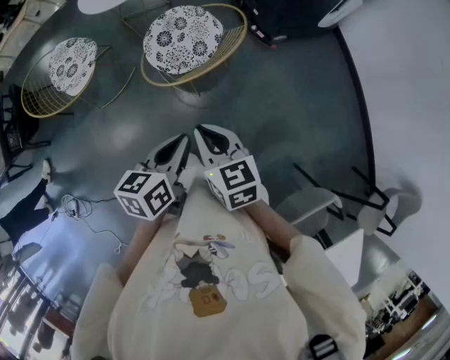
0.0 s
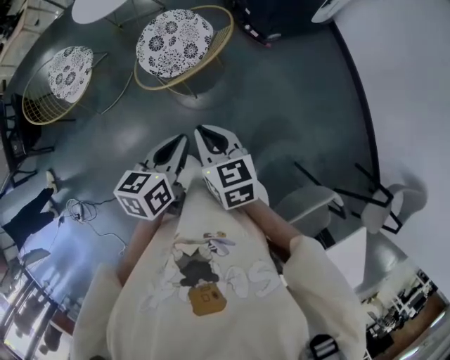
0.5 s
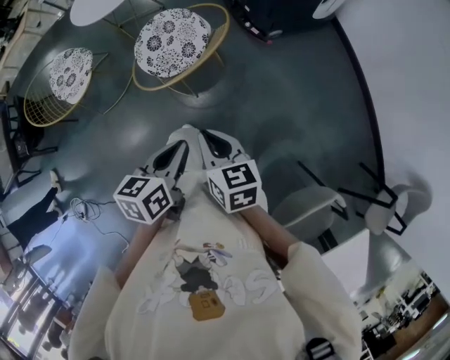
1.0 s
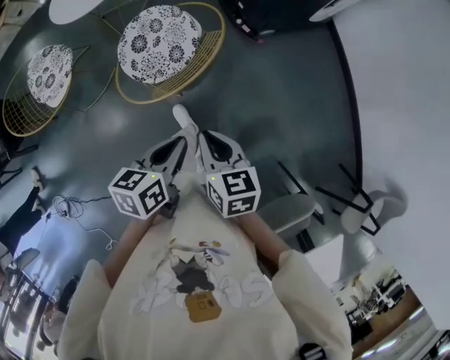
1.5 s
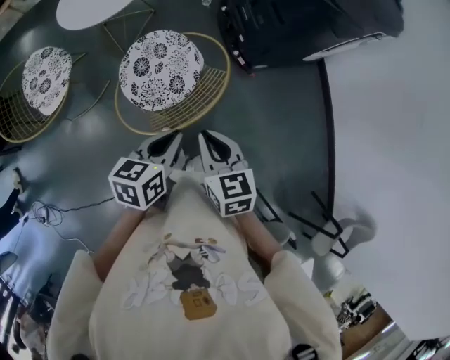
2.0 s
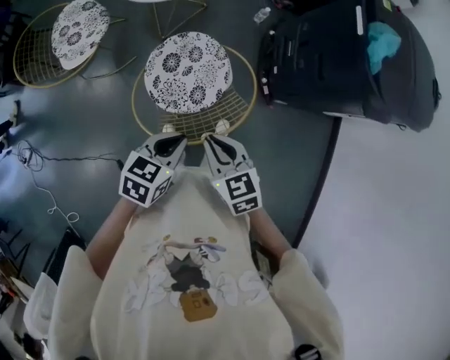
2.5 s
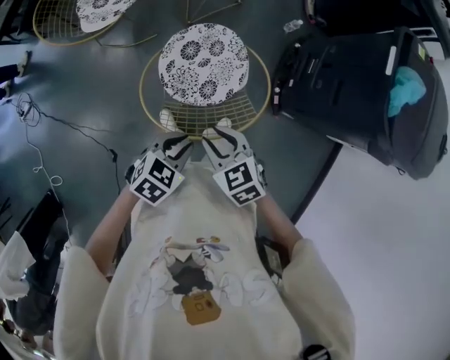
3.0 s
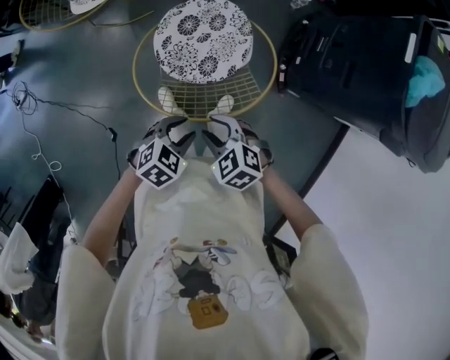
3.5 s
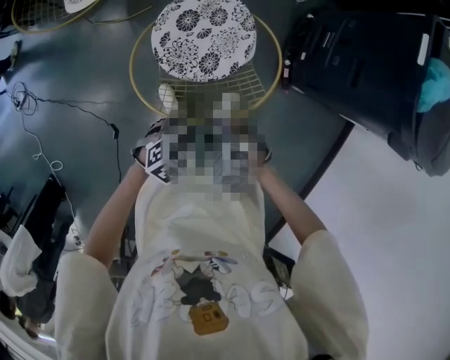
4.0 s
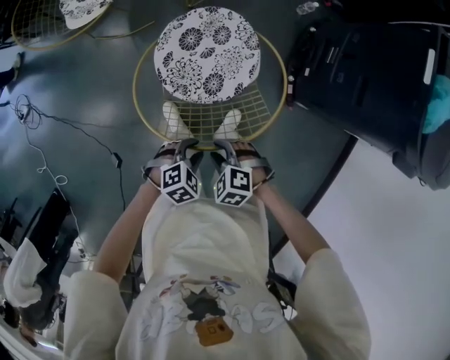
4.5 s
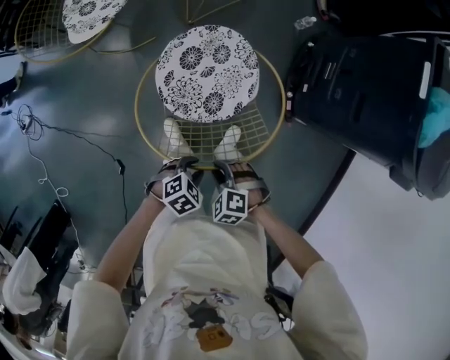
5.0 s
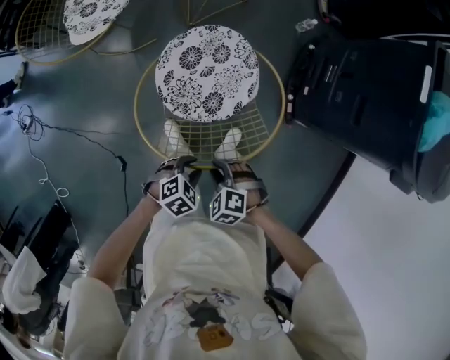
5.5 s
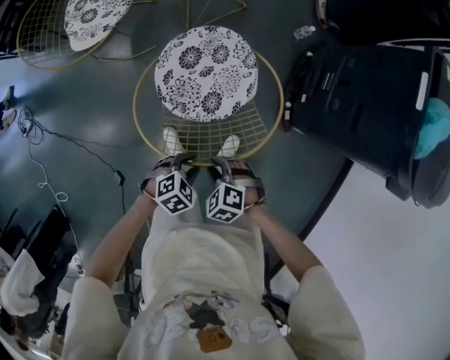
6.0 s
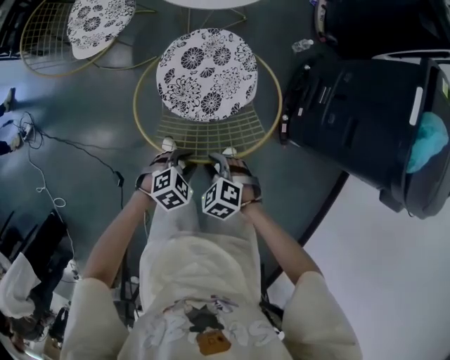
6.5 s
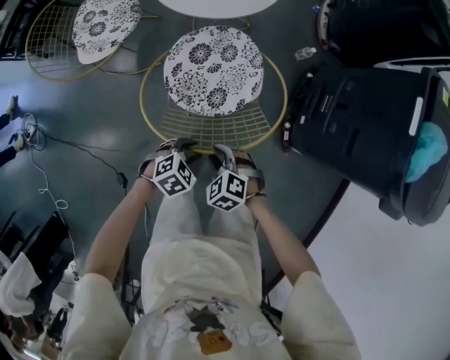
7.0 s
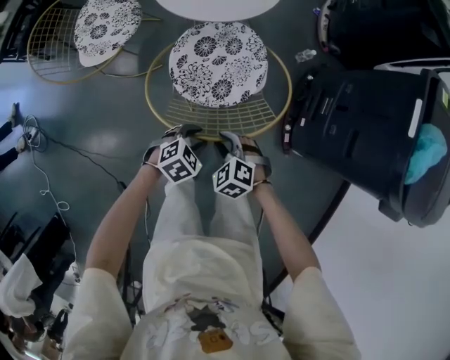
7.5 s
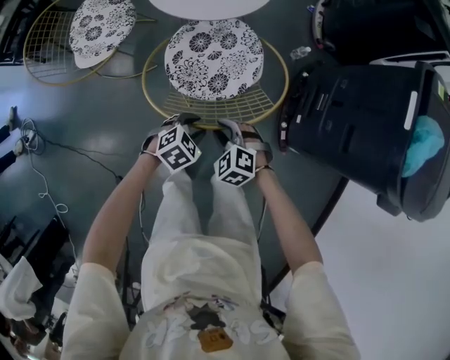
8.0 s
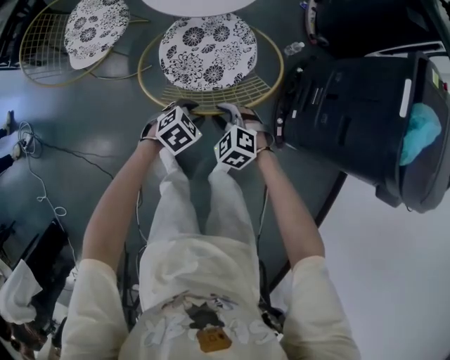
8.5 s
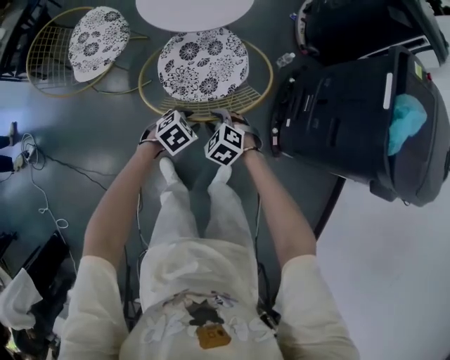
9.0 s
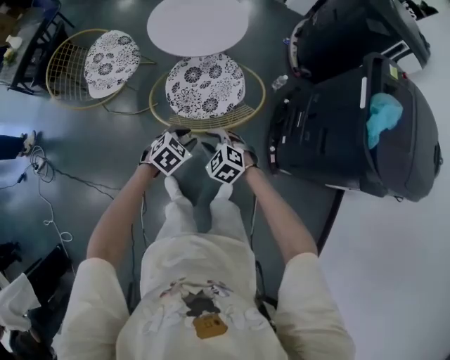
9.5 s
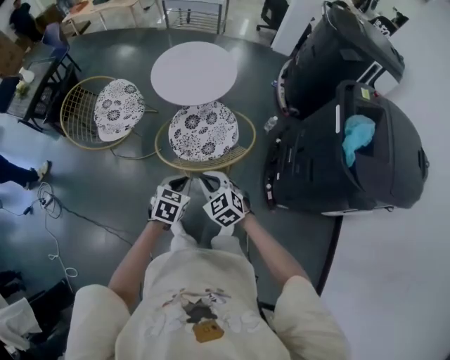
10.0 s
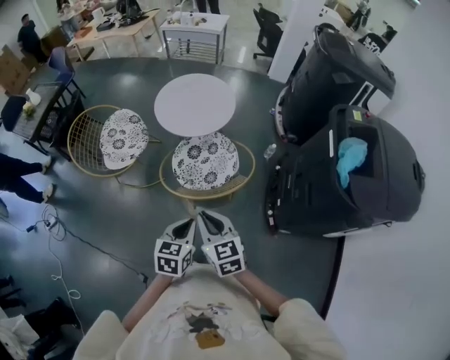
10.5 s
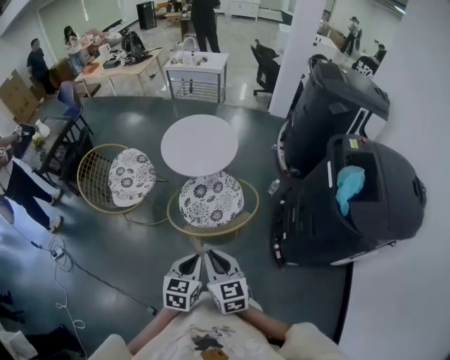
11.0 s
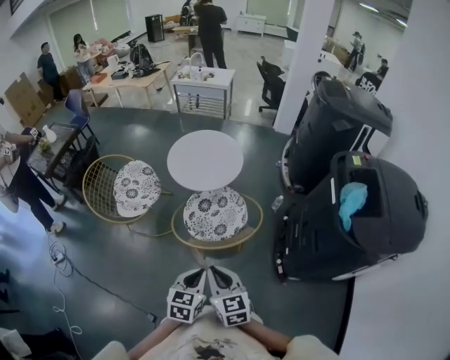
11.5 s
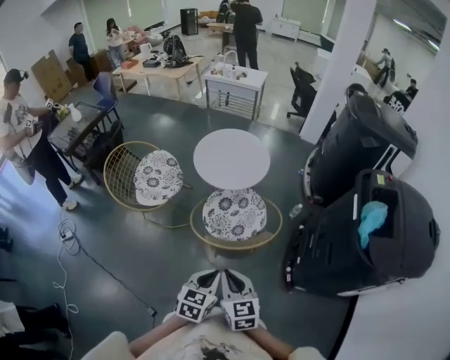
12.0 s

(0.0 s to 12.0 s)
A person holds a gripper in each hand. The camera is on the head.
0.0 s - 2.0 s: Both grippers travel together forward, some 25 cm.
2.0 s - 4.0 s: Both grippers travel together downward, approximately 20 cm. The right gripper swivels approximately 90 degrees, and opens up. The left gripper rotates approximately 40 degrees, and opens its fingers.
4.0 s - 6.0 s: The left gripper heads downward, covering about 5 cm.
6.0 s - 8.0 s: The right gripper moves approximately 20 cm. Meanwhile the left gripper changes place by approximately 20 cm.
8.0 s - 10.0 s: The two grippers go some 20 cm upward. The right gripper rotates roughly 30 degrees; the left gripper changes its angle by some 30 degrees, and closes up.
10.0 s - 12.0 s: Both grippers move upward and backward, about 15 cm. The right gripper turns by roughly 30 degrees.

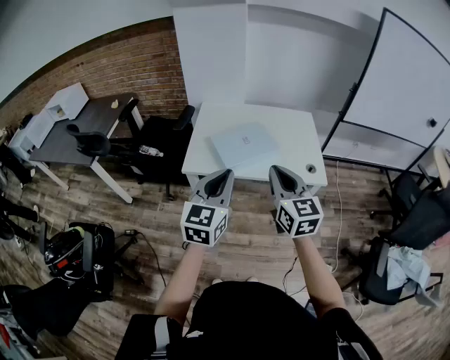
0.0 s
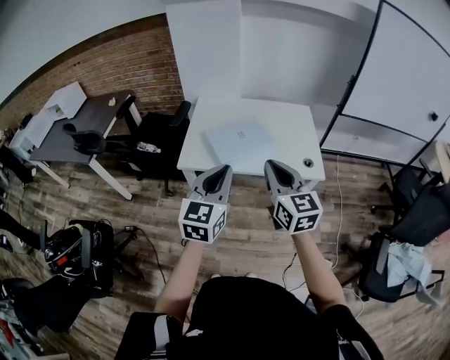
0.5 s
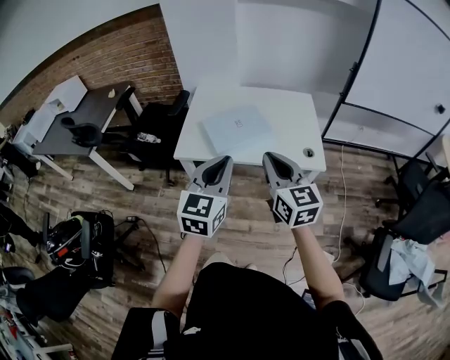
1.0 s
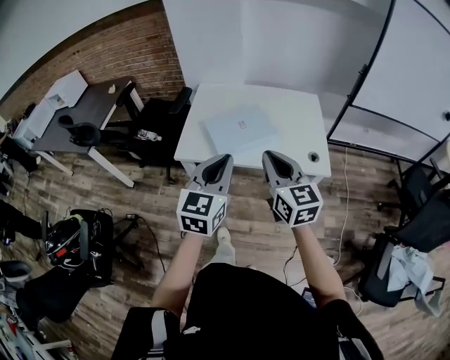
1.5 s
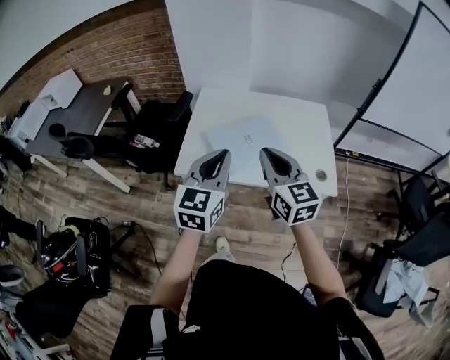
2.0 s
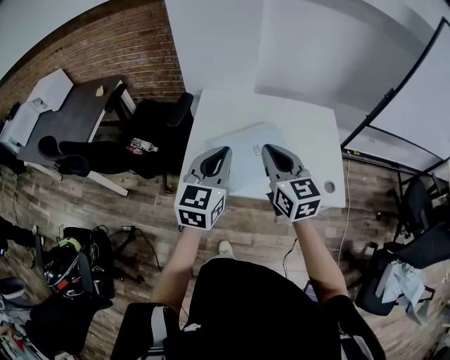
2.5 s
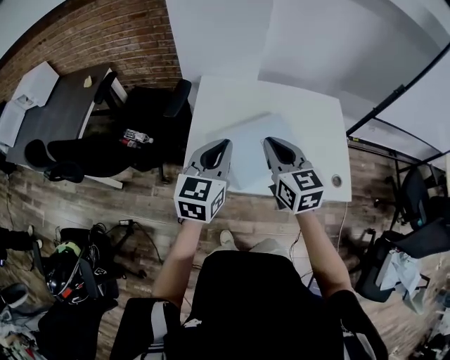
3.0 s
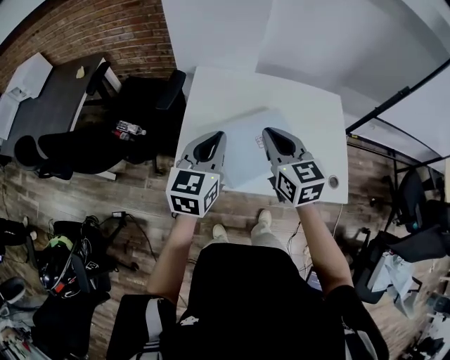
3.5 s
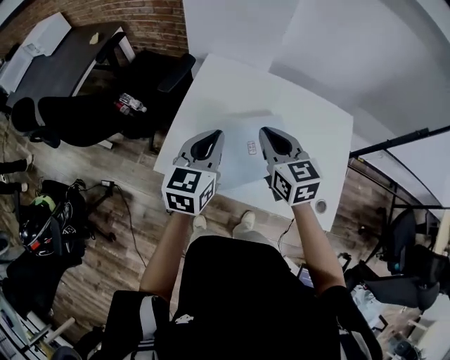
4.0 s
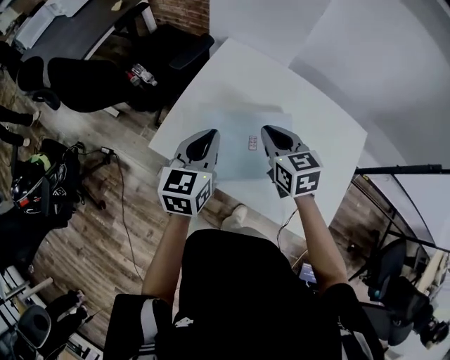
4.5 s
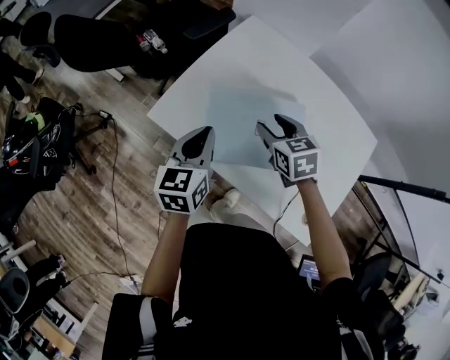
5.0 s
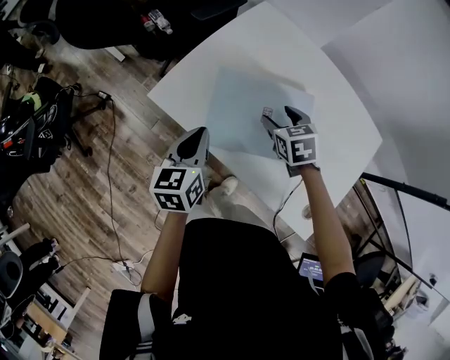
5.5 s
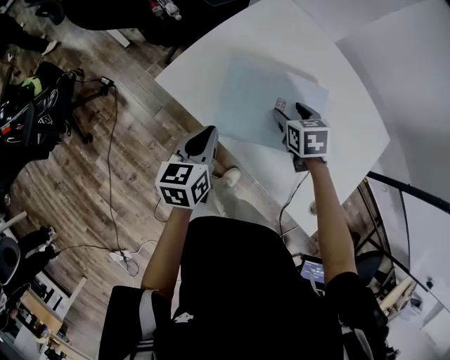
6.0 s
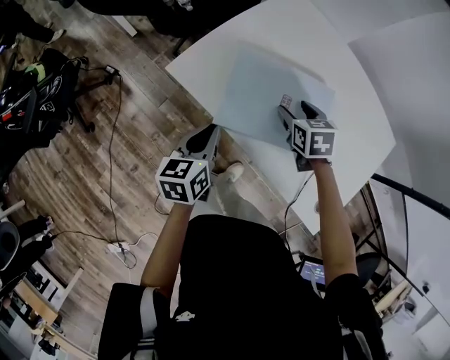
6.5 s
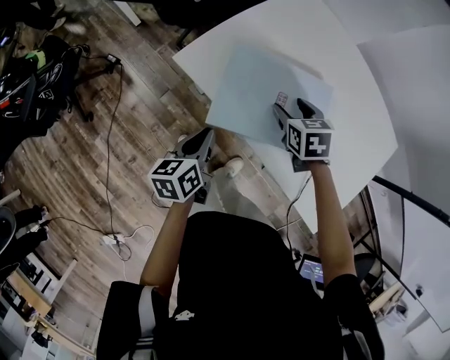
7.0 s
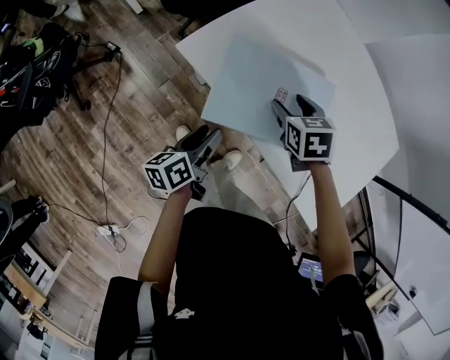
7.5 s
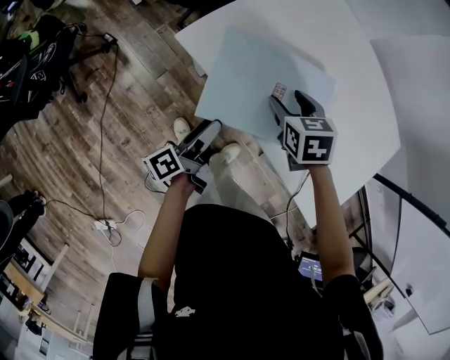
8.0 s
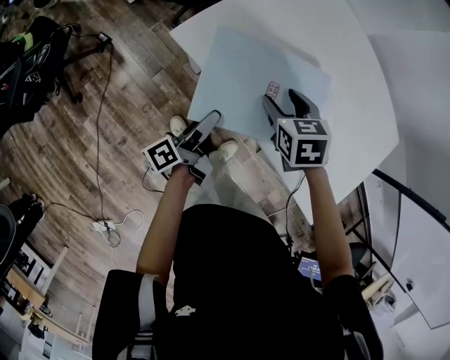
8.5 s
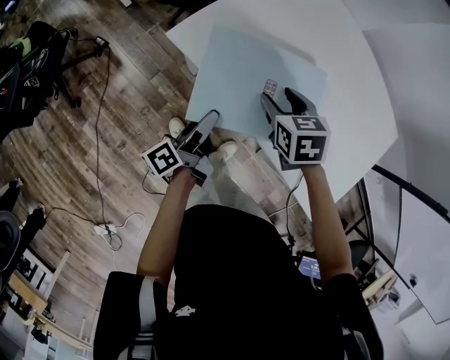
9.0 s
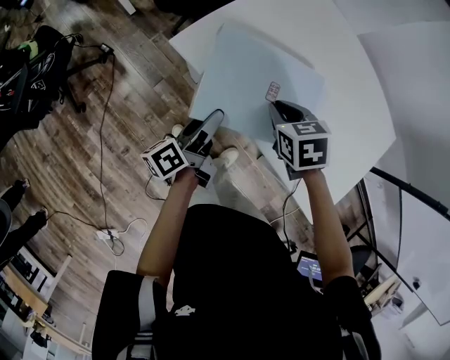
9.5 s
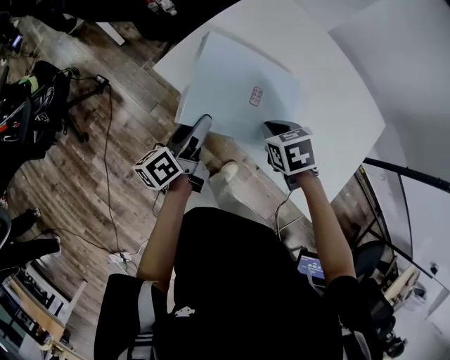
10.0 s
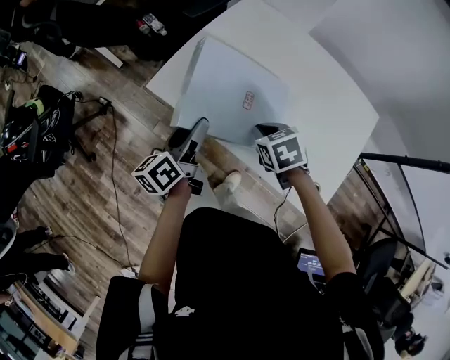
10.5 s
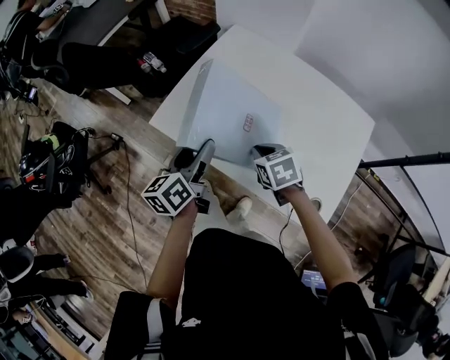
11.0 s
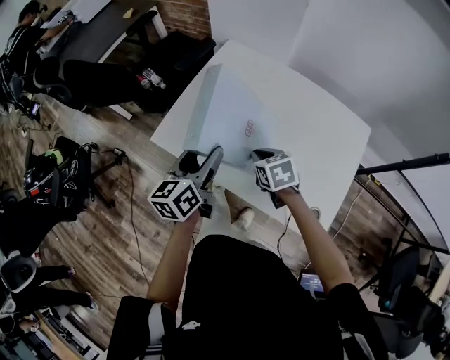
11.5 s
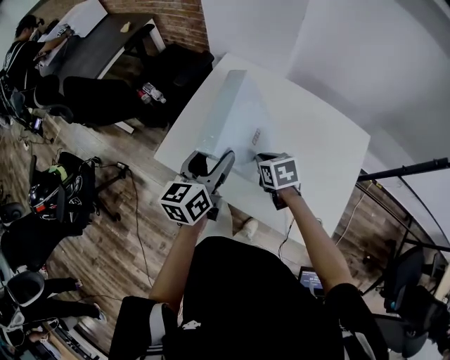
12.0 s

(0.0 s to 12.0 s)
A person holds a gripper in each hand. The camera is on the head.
0.0 s - 2.0 s: Both grippers travel together forward, approximately 15 cm.
2.0 s - 4.0 s: The right gripper is displaced forward by some 25 cm. The left gripper goes roughly 25 cm forward and downward.
4.0 s - 6.0 s: The right gripper is displaced downward by some 25 cm, tilts its fingers some 30 degrees downward, and opens its fingers, while the left gripper travels downward and backward by about 20 cm, and swivels some 40 degrees.
6.0 s - 8.0 s: The right gripper moves to the left, roughly 10 cm; the left gripper heads downward and backward, covering about 10 cm, twists some 50 degrees counterclockwise, seen from behind, and opens up.
8.0 s - 10.0 s: The right gripper moves backward, roughly 5 cm, and closes. Meanwhile the left gripper goes some 10 cm upward.
10.0 s - 12.0 s: The left gripper is displaced upward, to the right and forward by roughly 20 cm, and rotates about 40 degrees. The right gripper moves to the right and forward, some 10 cm, and swivels roughly 20 degrees.

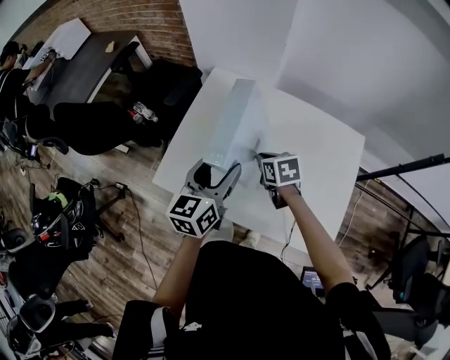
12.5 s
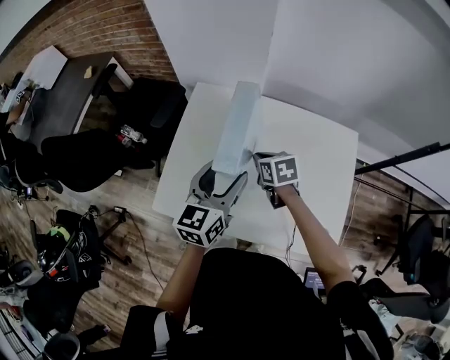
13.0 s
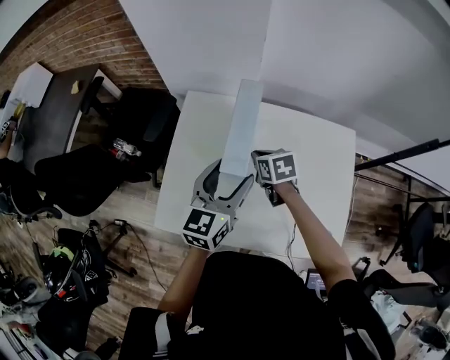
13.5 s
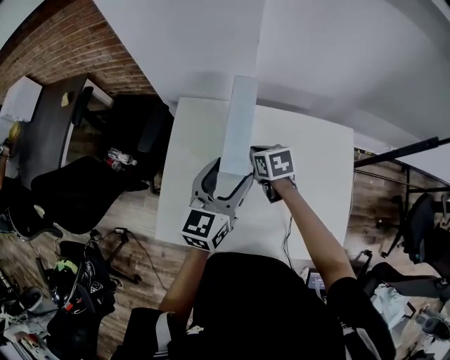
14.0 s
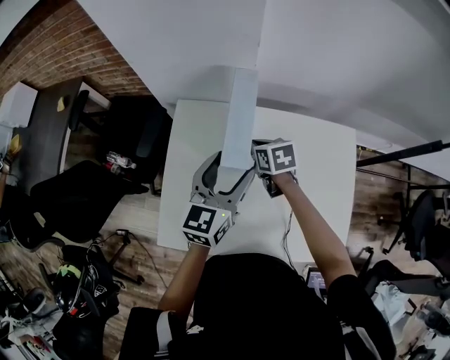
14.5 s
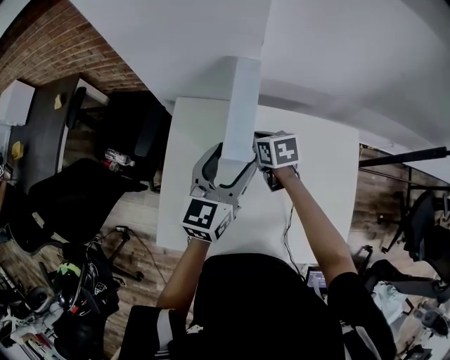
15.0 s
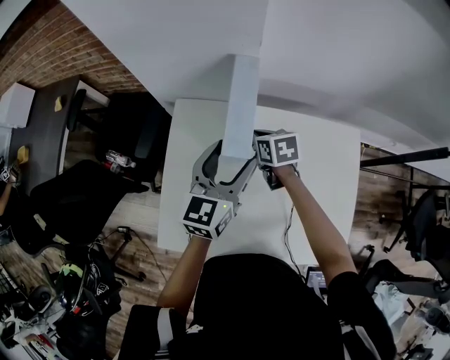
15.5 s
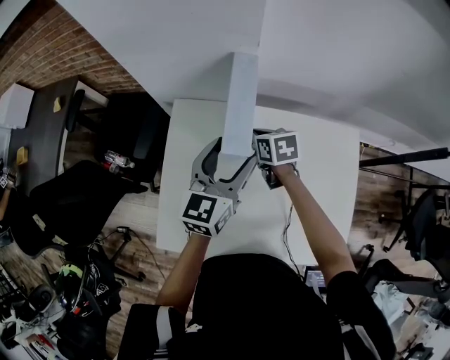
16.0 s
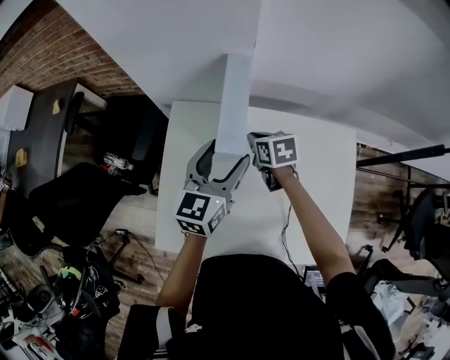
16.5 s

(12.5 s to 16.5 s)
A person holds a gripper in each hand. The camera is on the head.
12.5 s - 14.5 s: The two grippers go about 15 cm forward. The left gripper swivels approximately 20 degrees.
14.5 s - 16.5 s: The grippers make only small movements.
